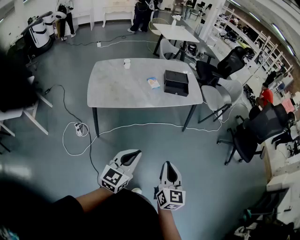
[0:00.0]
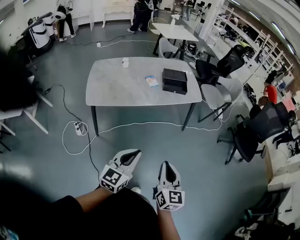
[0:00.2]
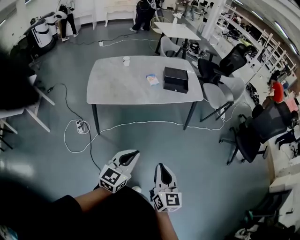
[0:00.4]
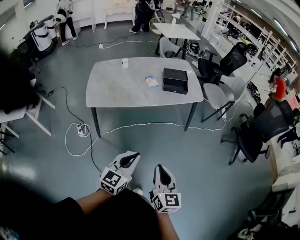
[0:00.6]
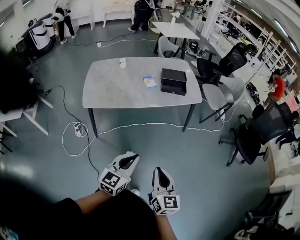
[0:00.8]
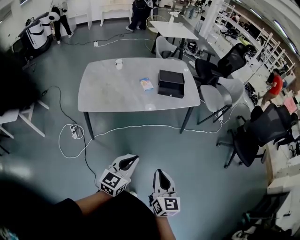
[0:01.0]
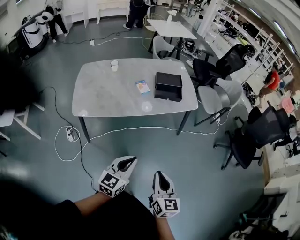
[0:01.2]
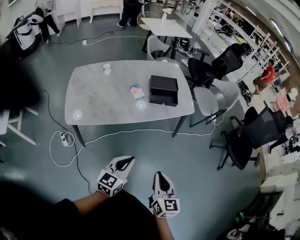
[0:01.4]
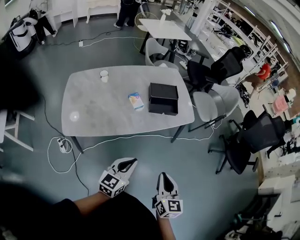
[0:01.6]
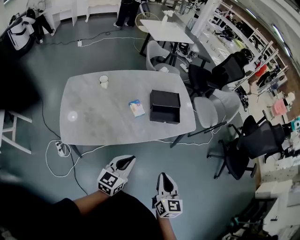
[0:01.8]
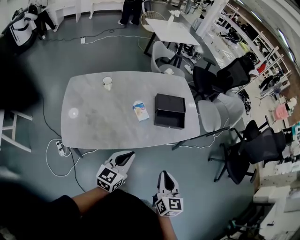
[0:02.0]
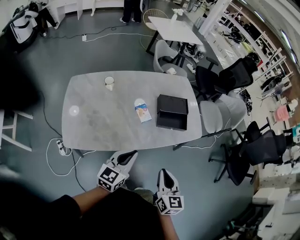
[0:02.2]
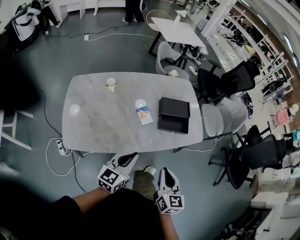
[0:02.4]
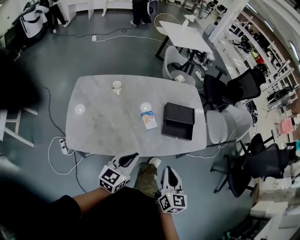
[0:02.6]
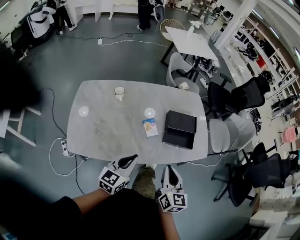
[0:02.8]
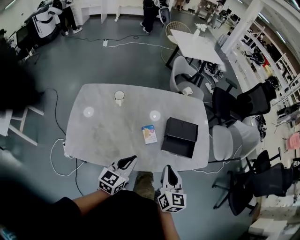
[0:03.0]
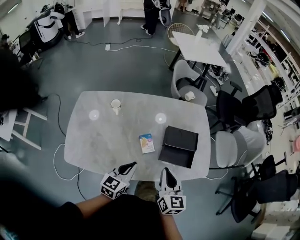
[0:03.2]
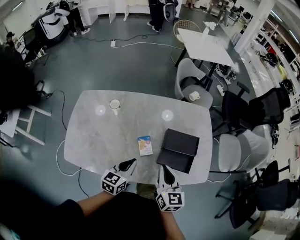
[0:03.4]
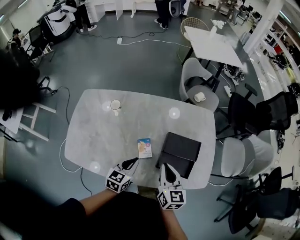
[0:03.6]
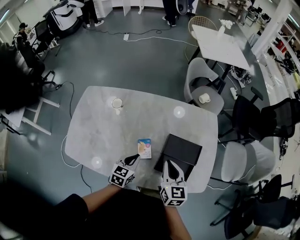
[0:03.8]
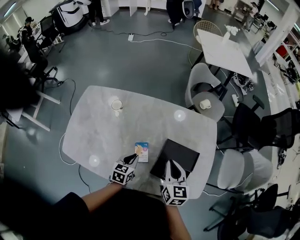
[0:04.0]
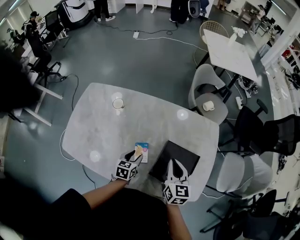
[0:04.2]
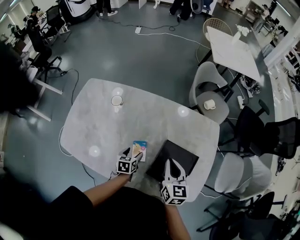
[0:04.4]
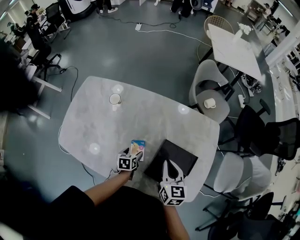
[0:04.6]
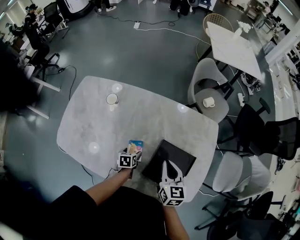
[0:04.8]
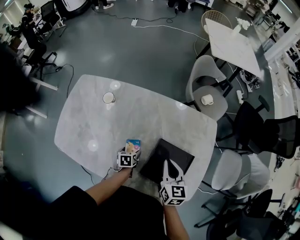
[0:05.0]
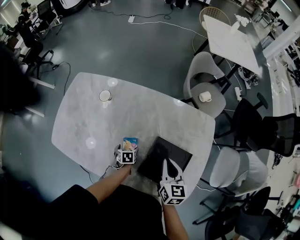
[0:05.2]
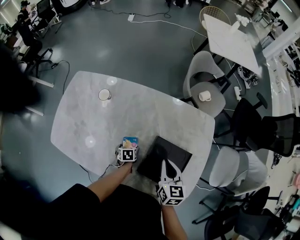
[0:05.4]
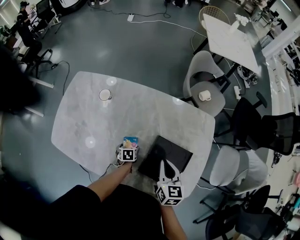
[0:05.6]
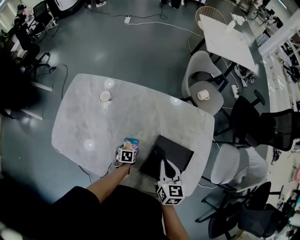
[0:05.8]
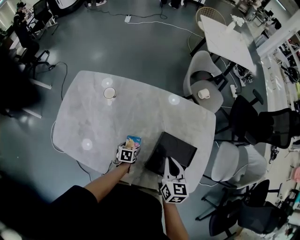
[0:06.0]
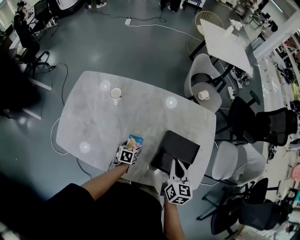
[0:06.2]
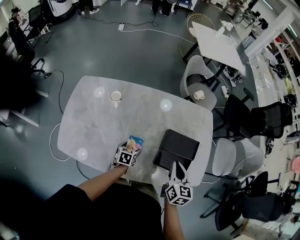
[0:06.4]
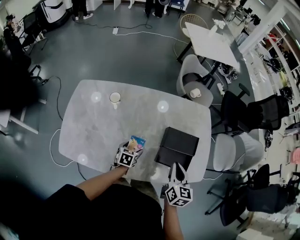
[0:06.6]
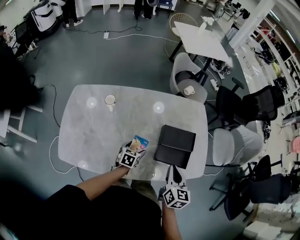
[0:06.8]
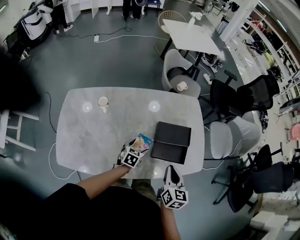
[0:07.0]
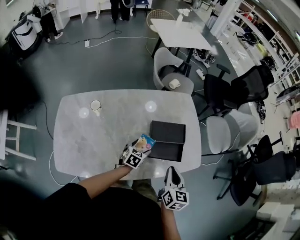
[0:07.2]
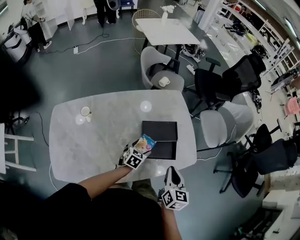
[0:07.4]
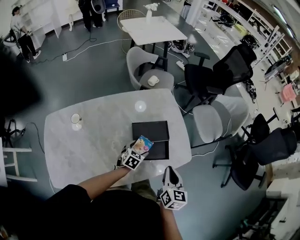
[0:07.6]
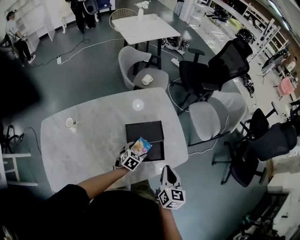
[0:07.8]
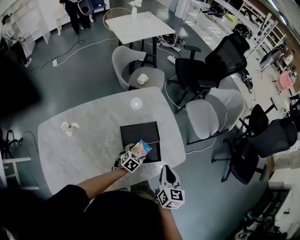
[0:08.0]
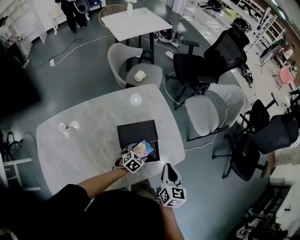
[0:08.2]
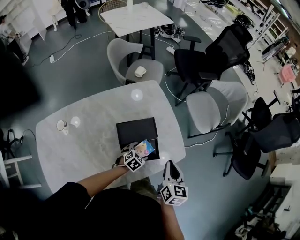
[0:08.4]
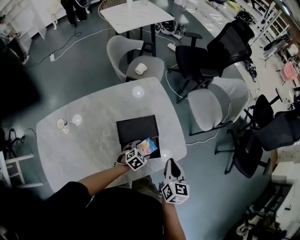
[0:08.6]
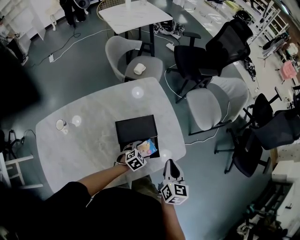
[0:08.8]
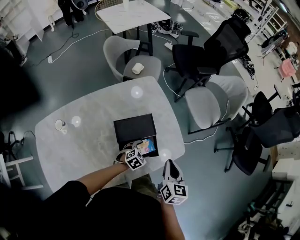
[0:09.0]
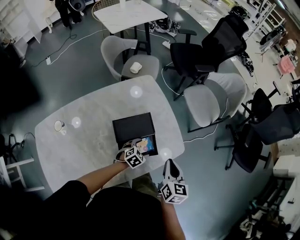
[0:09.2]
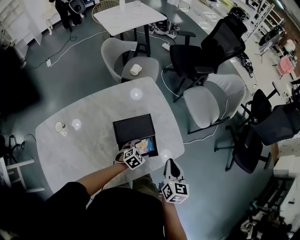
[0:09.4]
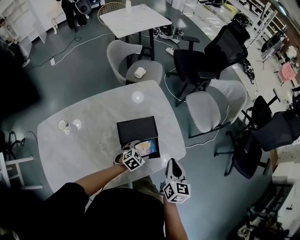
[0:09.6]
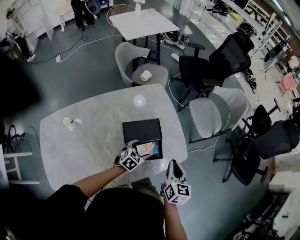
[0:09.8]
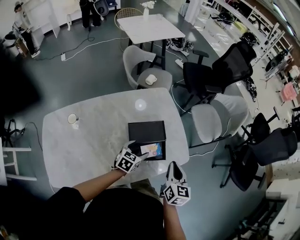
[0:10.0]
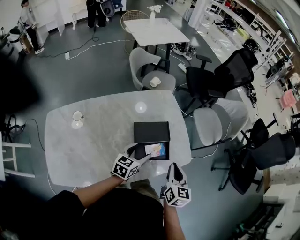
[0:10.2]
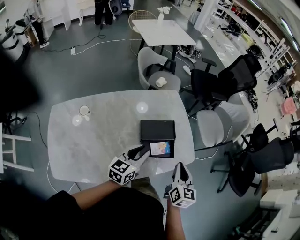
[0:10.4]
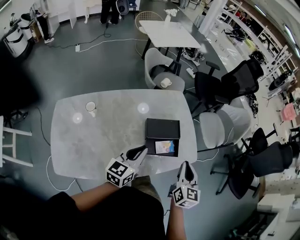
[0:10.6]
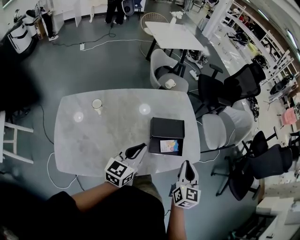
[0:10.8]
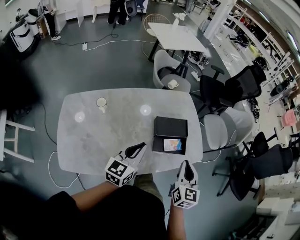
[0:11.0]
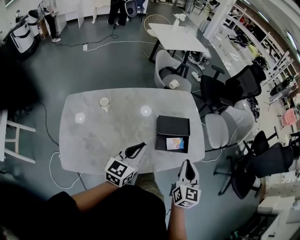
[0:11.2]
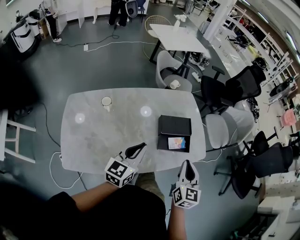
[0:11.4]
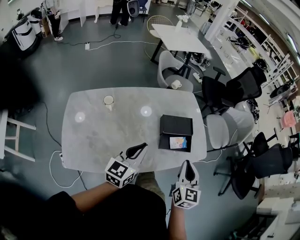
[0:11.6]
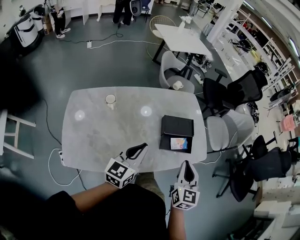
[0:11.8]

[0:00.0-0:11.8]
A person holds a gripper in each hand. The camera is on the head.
0:00.0 to 0:01.4: Both grippers move forward, some 20 cm.
0:01.4 to 0:03.0: The left gripper is displaced forward and to the left by about 40 cm; the right gripper goes approximately 40 cm forward.
0:03.0 to 0:04.4: The right gripper heads forward, covering approximately 30 cm, and swivels about 20 degrees. Meanwhile the left gripper shifts about 30 cm downward and forward, tilts its fingers roughly 40 degrees downward, and opens.
0:04.4 to 0:06.0: The left gripper travels downward by approximately 10 cm.
0:06.0 to 0:07.4: The right gripper shifts by about 20 cm, and rotates some 30 degrees. Meanwhile the left gripper changes place by roughly 20 cm, and rolls clockwise, seen from behind, by approximately 50 degrees.
0:07.4 to 0:08.8: The left gripper shifts approximately 20 cm to the right, downward and forward, and rotates about 30 degrees; the right gripper heads forward, to the right and downward, covering some 15 cm.
0:08.8 to 0:10.4: The left gripper travels upward and to the left by some 30 cm, tips its fingers upward by some 40 degrees, and closes. The right gripper is displaced backward, upward and to the left by roughly 15 cm.
0:10.4 to 0:11.8: The right gripper moves to the left, backward and upward, approximately 20 cm; the left gripper travels backward, to the left and upward by roughly 20 cm.

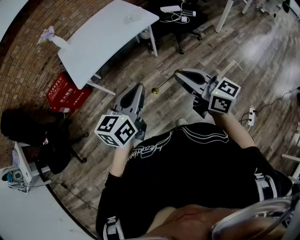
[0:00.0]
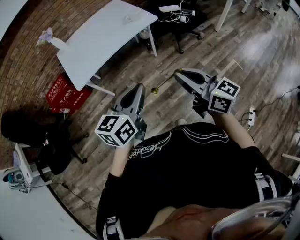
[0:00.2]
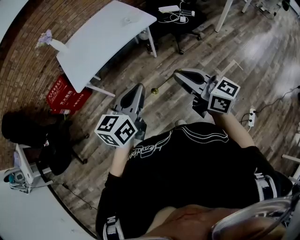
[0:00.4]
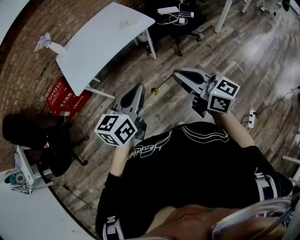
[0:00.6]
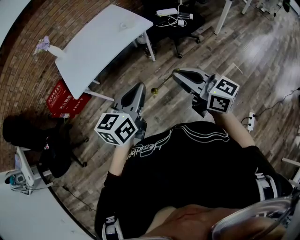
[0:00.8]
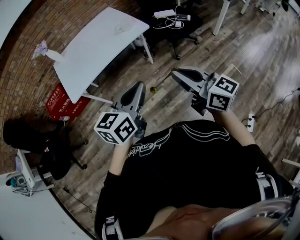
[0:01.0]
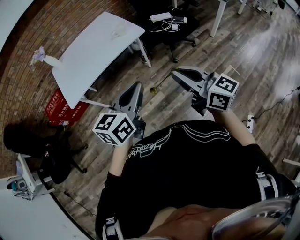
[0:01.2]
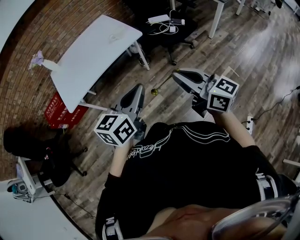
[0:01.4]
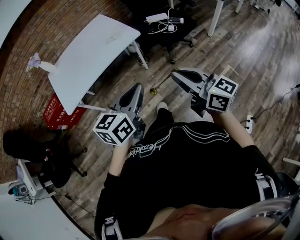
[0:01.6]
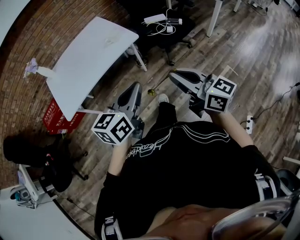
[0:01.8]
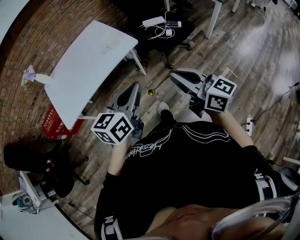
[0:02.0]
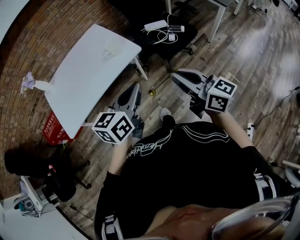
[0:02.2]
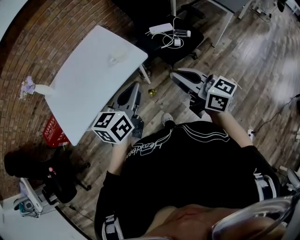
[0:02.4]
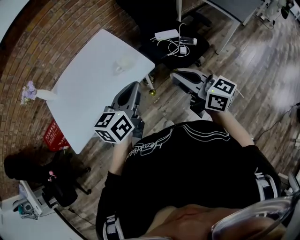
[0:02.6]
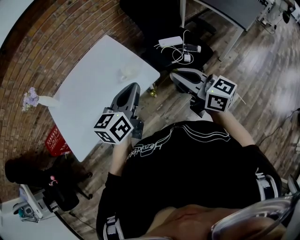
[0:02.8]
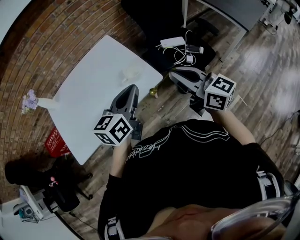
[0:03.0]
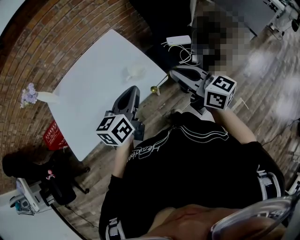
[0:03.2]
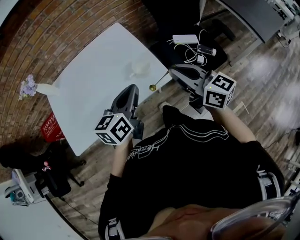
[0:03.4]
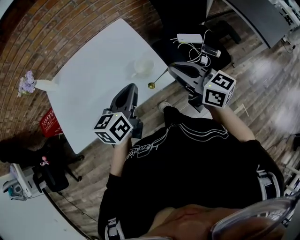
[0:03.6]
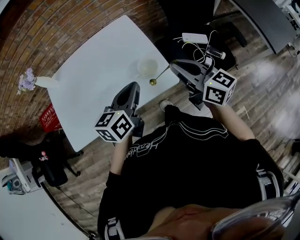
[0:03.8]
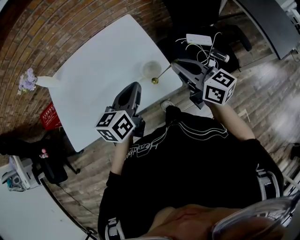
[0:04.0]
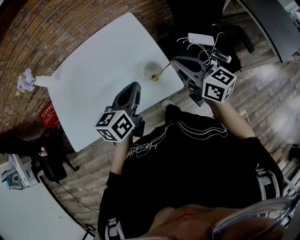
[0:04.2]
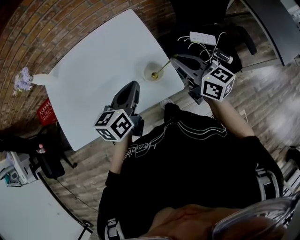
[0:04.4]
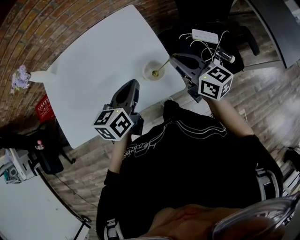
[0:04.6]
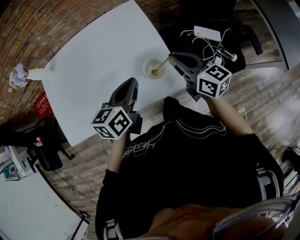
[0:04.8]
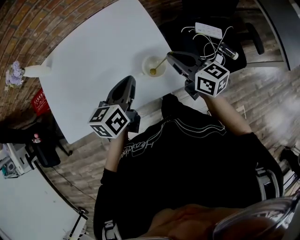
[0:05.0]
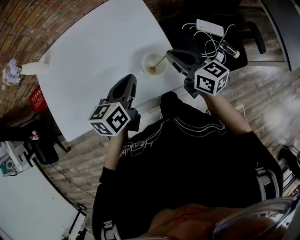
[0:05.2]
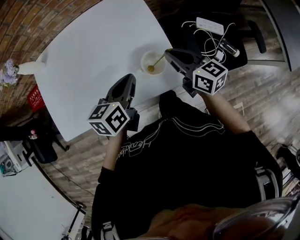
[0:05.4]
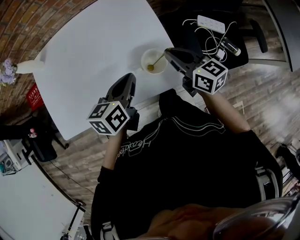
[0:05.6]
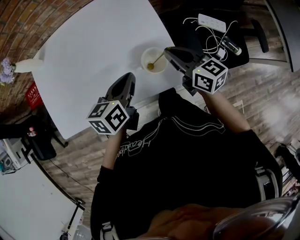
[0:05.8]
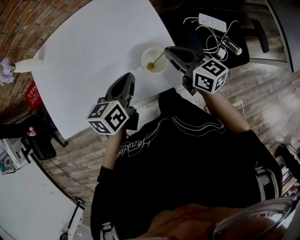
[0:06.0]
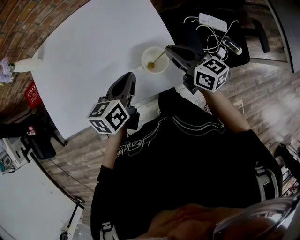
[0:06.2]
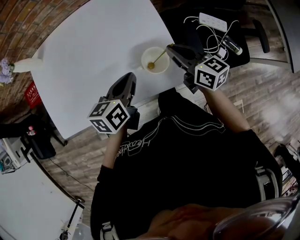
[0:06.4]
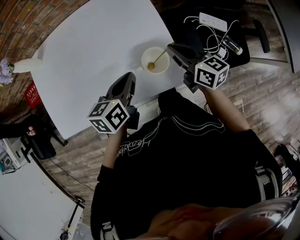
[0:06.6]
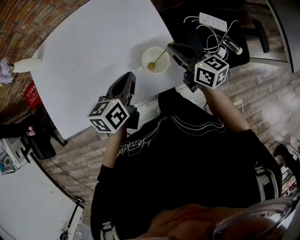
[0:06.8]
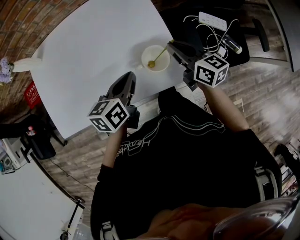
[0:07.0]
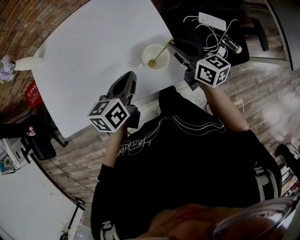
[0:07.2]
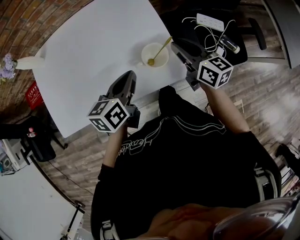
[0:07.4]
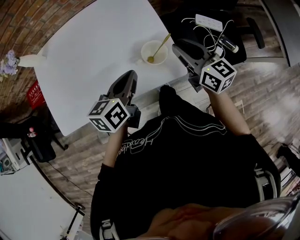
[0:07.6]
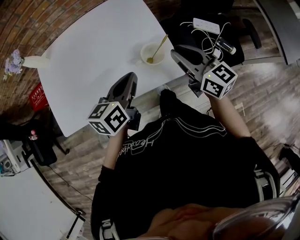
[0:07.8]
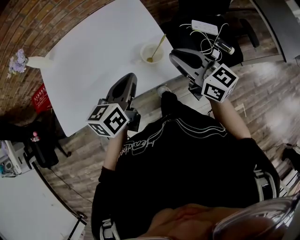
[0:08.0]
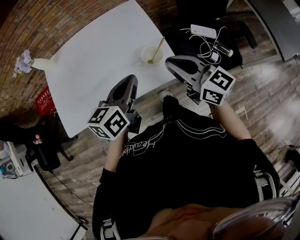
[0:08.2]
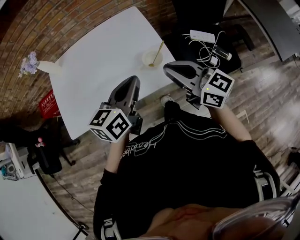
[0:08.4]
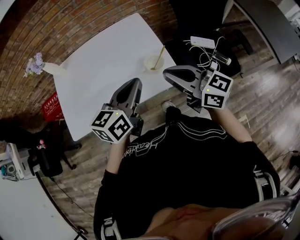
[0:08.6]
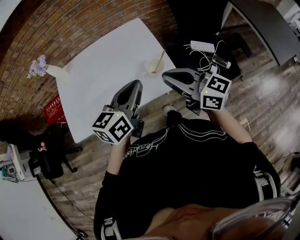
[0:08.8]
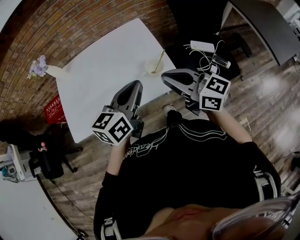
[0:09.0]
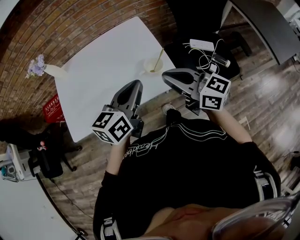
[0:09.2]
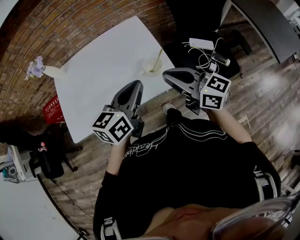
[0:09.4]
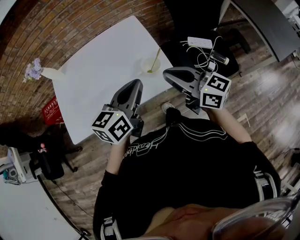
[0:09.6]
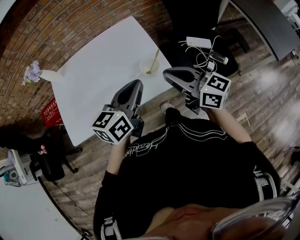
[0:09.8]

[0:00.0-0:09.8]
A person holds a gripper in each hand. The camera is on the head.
0:00.0 to 0:01.4: The grippers both shift to the right and forward by about 15 cm.
0:01.4 to 0:02.8: Both grippers travel together forward, about 40 cm.
0:02.8 to 0:04.2: The right gripper shifts roughly 25 cm forward; the left gripper heads forward and downward, covering approximately 20 cm, and changes its angle by some 20 degrees.
0:04.2 to 0:05.6: The left gripper travels downward by about 10 cm. The right gripper goes roughly 15 cm downward and forward.
0:05.6 to 0:07.0: The grippers make only small movements.
0:07.0 to 0:08.4: The grippers both shift upward and backward by about 20 cm. The left gripper swivels approximately 20 degrees. Meanwhile the right gripper changes its angle by some 20 degrees.
0:08.4 to 0:09.8: The grippers move only a little.

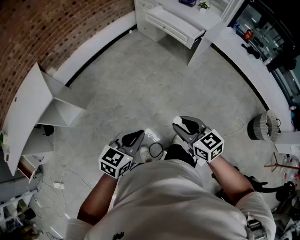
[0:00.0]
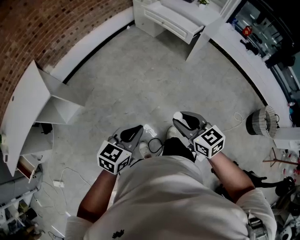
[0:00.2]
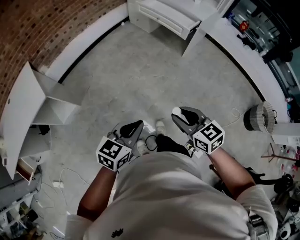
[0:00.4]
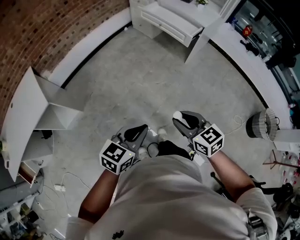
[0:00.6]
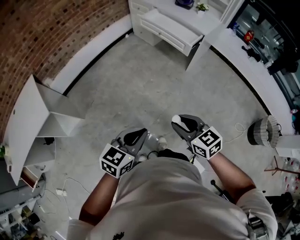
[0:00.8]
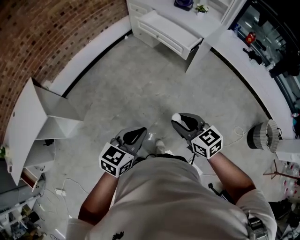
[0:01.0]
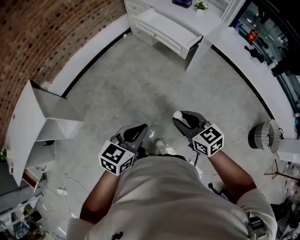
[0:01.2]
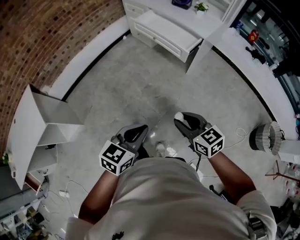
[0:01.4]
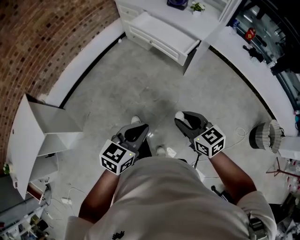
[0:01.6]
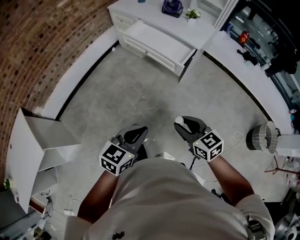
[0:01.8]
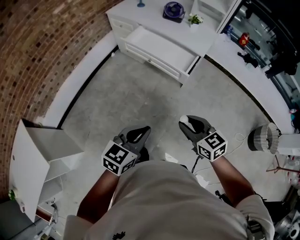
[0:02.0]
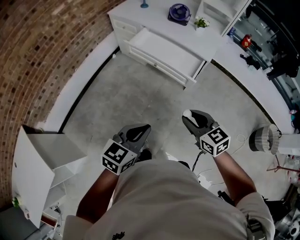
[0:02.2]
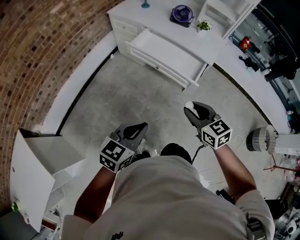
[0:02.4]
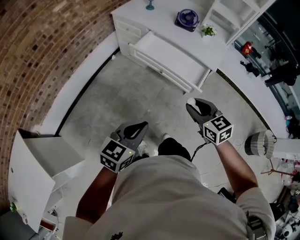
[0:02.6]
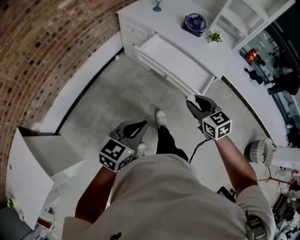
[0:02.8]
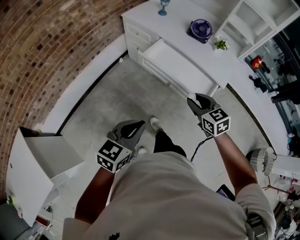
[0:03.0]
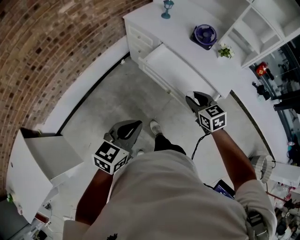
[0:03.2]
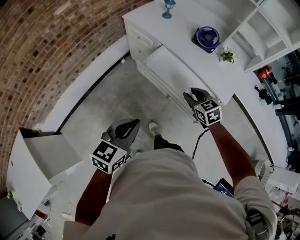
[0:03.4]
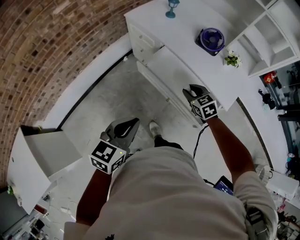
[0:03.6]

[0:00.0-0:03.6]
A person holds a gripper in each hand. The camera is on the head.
0:00.0 to 0:01.8: Both grippers move forward, approximately 35 cm.
0:01.8 to 0:03.6: The pair of grippers is taken forward, some 50 cm. The right gripper rotates about 20 degrees.
